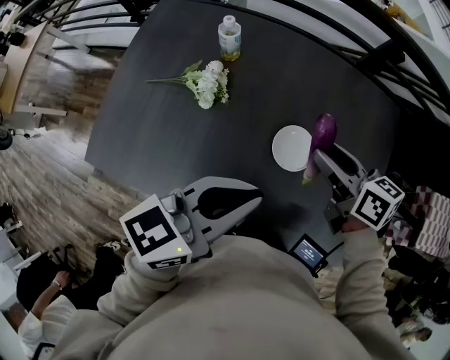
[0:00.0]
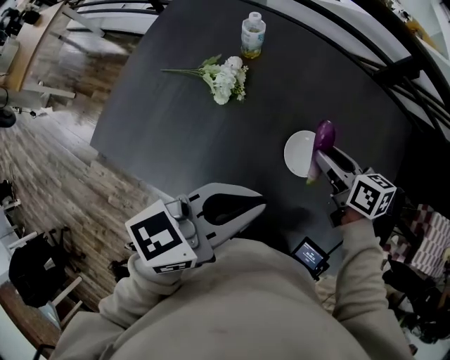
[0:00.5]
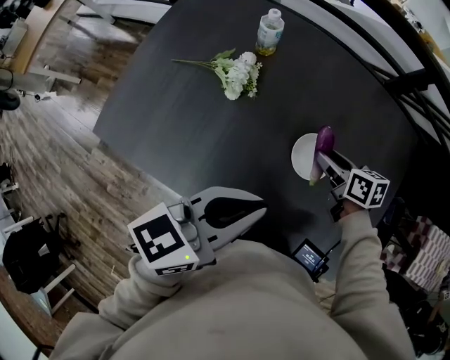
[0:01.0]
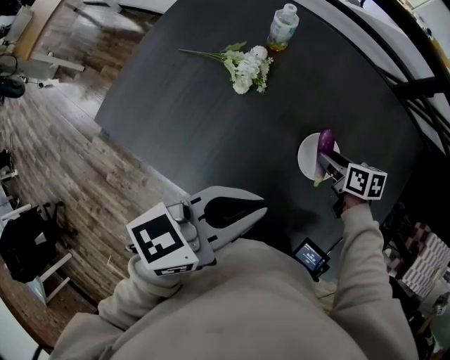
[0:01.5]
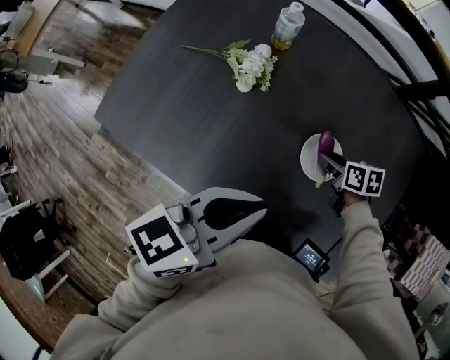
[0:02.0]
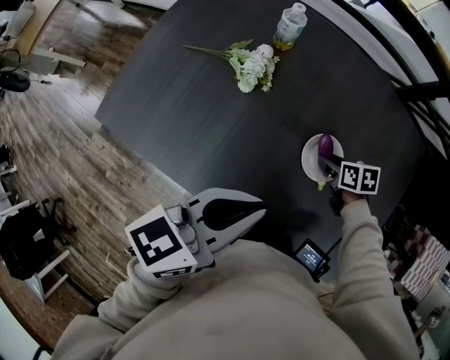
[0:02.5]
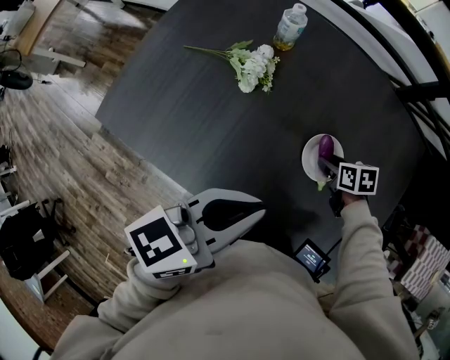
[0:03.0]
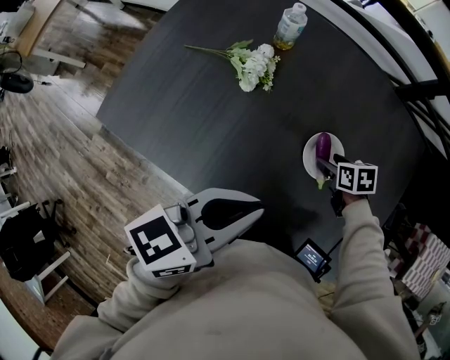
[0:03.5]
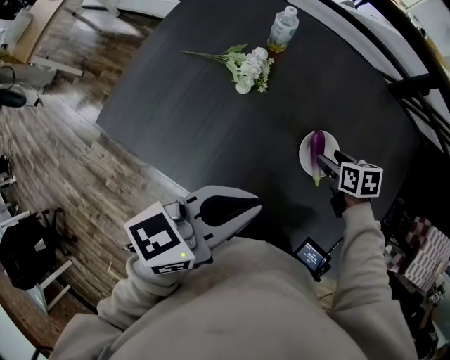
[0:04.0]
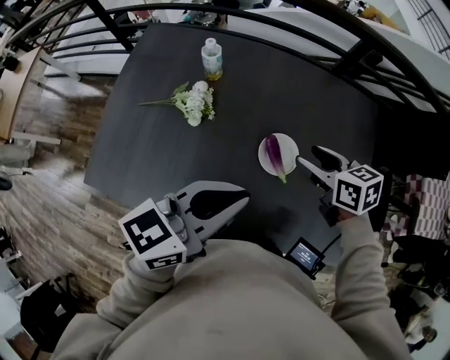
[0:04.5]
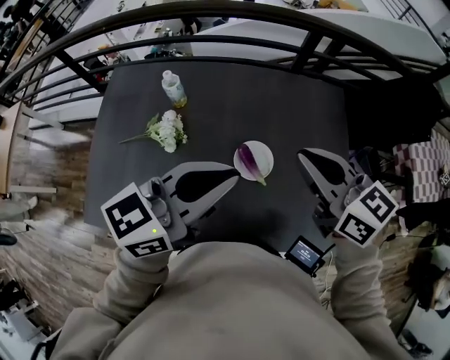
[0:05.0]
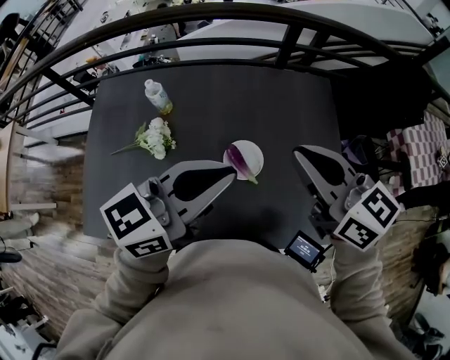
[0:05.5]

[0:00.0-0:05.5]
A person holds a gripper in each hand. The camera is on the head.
0:00.0 to 0:02.0: The right gripper travels downward by roughly 25 cm, and changes its angle by some 30 degrees. Meanwhile the left gripper moves downward, about 5 cm.
0:02.0 to 0:03.5: The grippers stay close to where they were, moving slightly.
0:03.5 to 0:05.5: The left gripper heads upward, covering approximately 15 cm, and swivels roughly 30 degrees. Meanwhile the right gripper shifts some 40 cm upward, points its fingers some 50 degrees further upward, and closes its fingers.

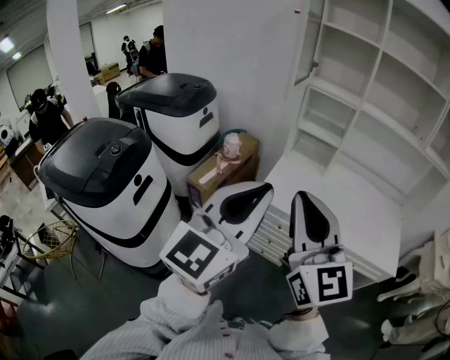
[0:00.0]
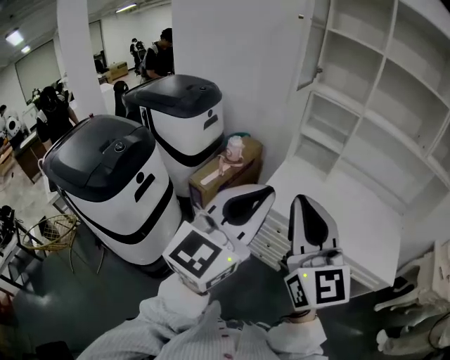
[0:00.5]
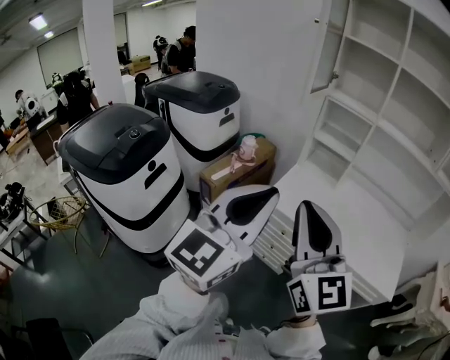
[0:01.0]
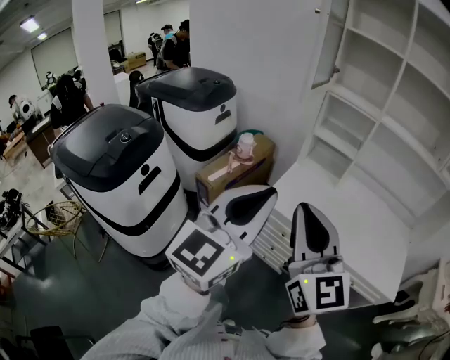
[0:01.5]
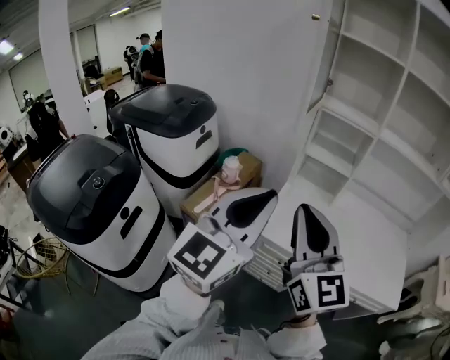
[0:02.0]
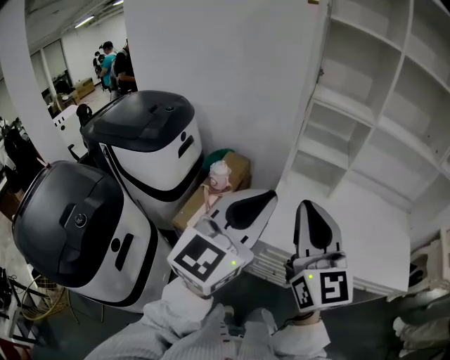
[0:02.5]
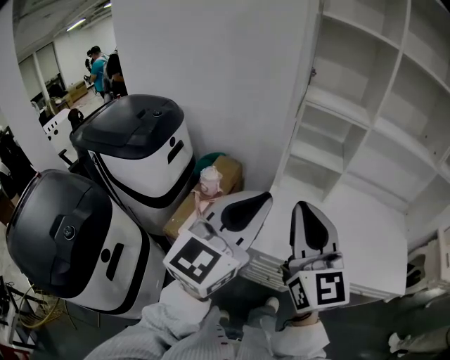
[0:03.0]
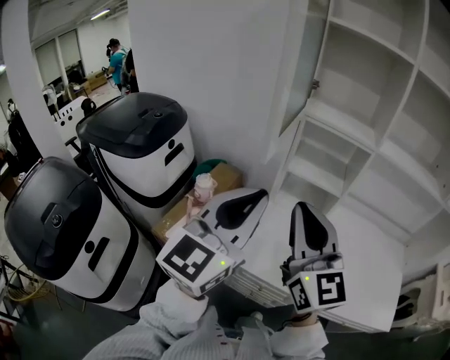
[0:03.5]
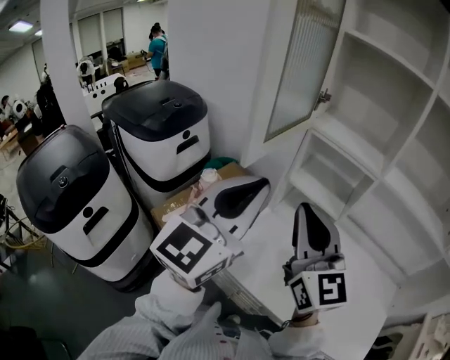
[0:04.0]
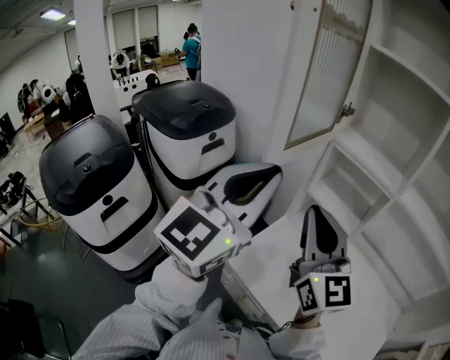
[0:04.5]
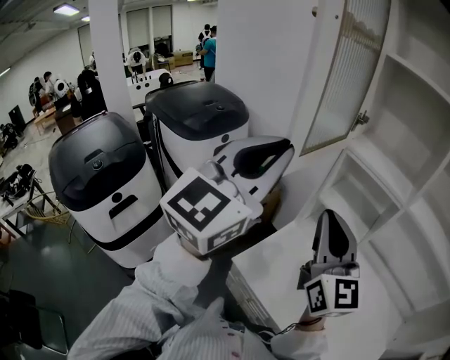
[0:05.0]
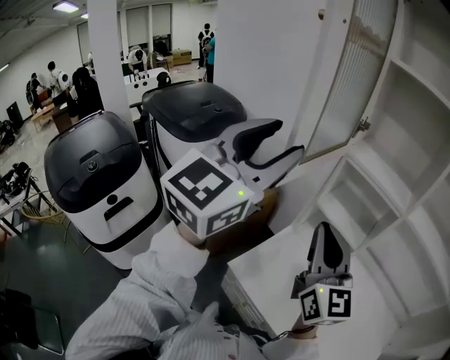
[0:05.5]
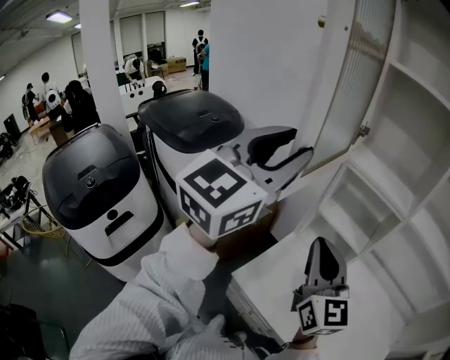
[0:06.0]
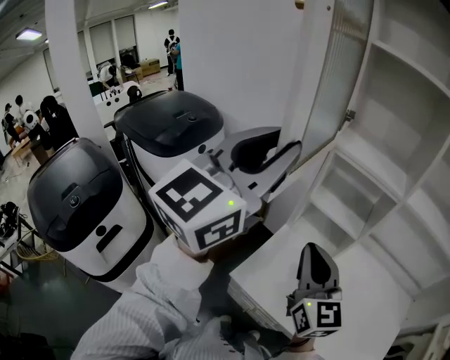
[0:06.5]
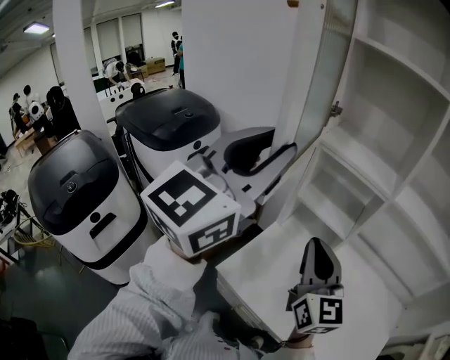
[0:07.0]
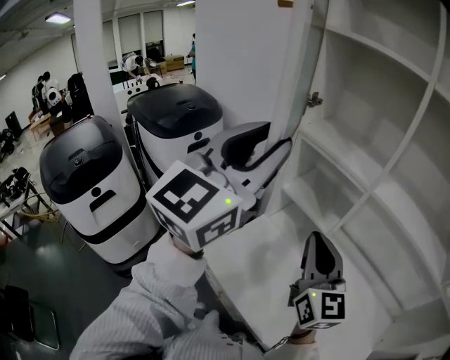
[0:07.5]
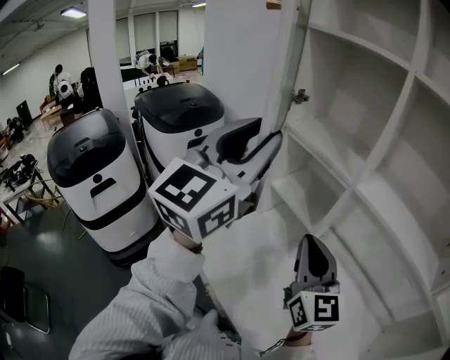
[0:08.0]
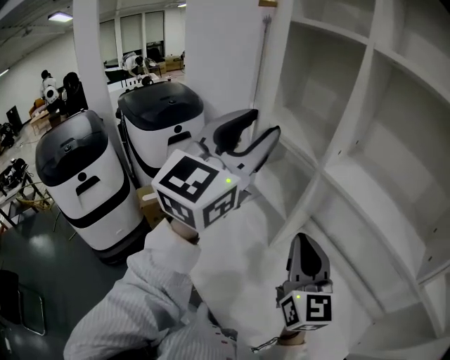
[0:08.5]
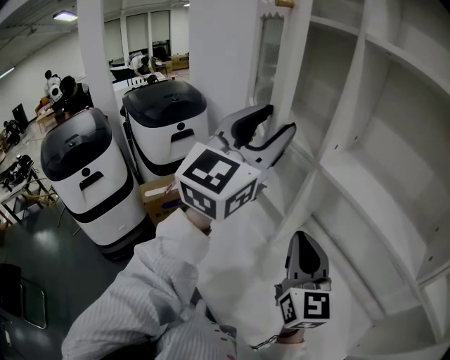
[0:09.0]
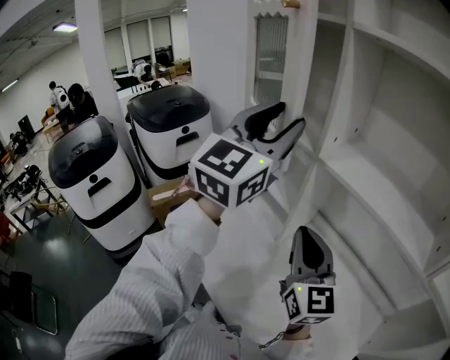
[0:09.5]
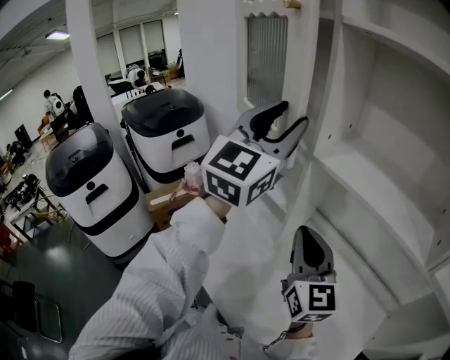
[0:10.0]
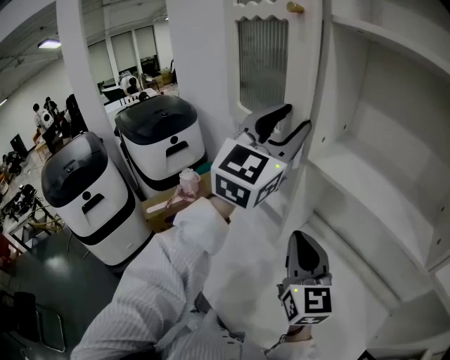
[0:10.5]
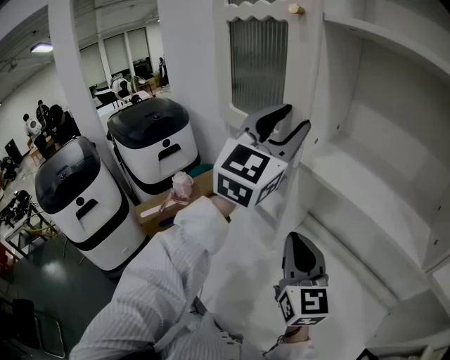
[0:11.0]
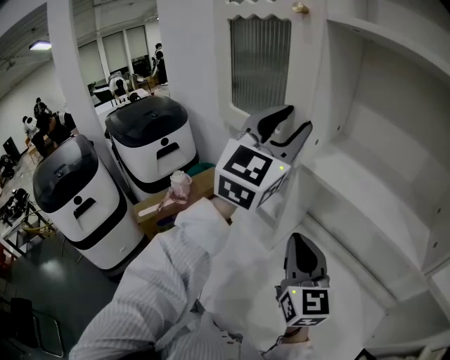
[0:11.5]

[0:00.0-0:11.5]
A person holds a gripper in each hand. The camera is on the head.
0:00.0 to 0:02.0: Both grippers travel together forward, some 15 cm.
0:02.0 to 0:04.0: Both grippers travel together forward, some 20 cm.
0:04.0 to 0:06.0: The right gripper ends up approximately 5 cm from where it was; the left gripper goes approximately 10 cm upward and forward, and opens its fingers.
0:06.0 to 0:07.5: Both grippers move to the right, some 15 cm.
0:07.5 to 0:09.5: Both grippers move to the right, about 15 cm.
0:09.5 to 0:11.5: The left gripper shifts roughly 10 cm to the right and forward.

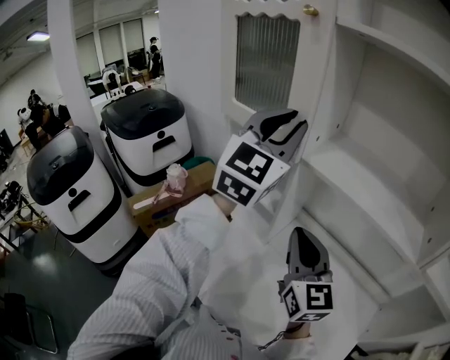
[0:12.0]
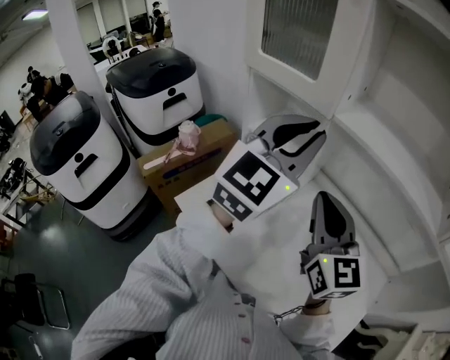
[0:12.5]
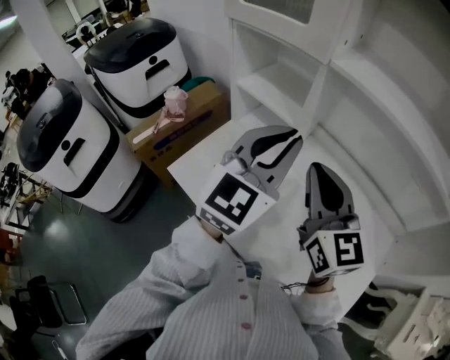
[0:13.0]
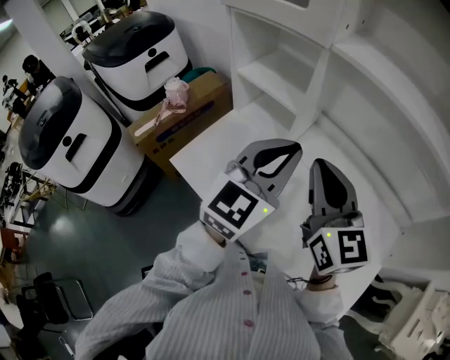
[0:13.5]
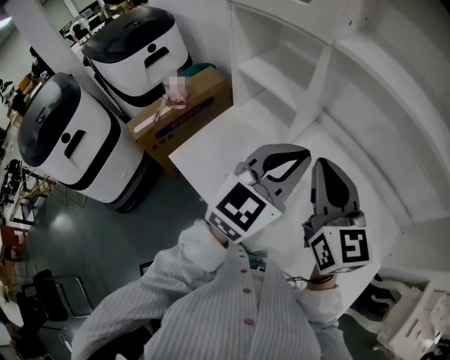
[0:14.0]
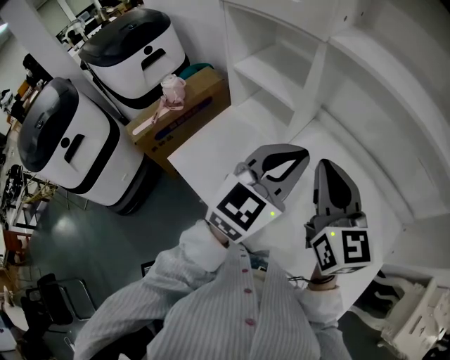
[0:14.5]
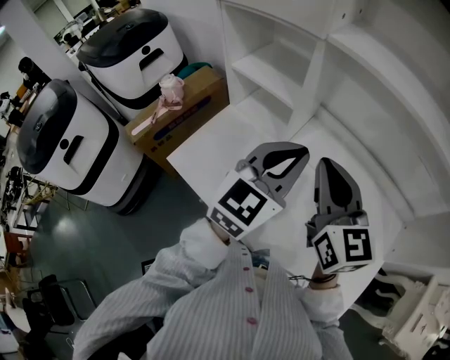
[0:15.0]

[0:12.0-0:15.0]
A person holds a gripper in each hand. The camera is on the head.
0:12.0 to 0:13.5: The right gripper travels backward by approximately 5 cm, while the left gripper heads downward and backward, covering about 30 cm, and changes its angle by roughly 20 degrees.
0:13.5 to 0:15.0: The grippers make only small movements.

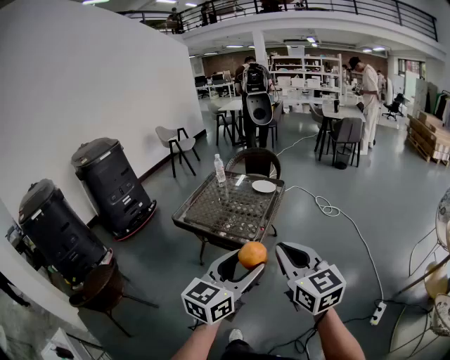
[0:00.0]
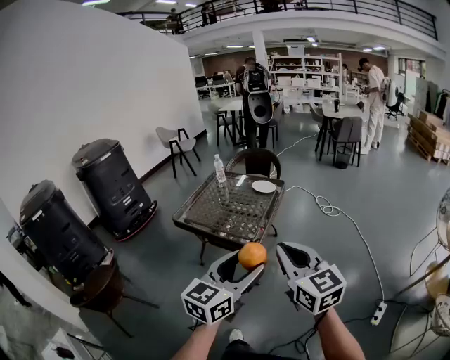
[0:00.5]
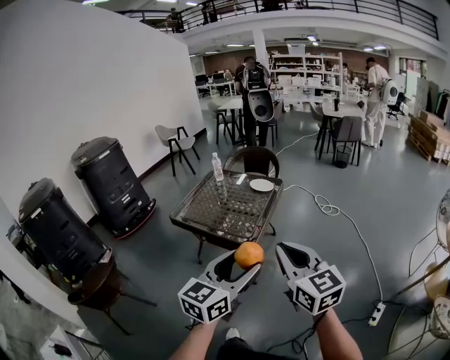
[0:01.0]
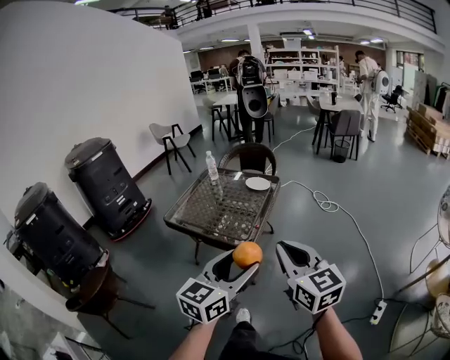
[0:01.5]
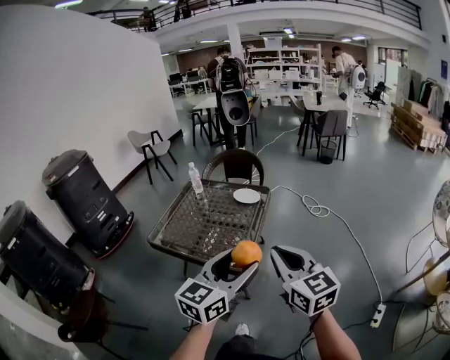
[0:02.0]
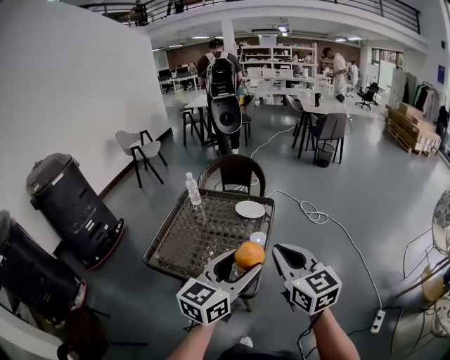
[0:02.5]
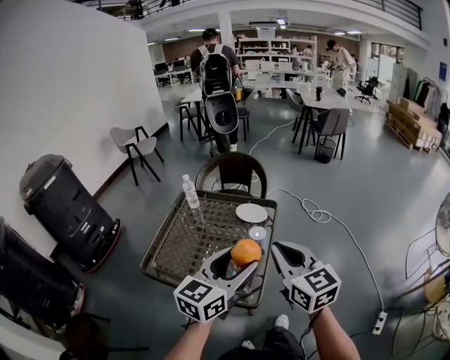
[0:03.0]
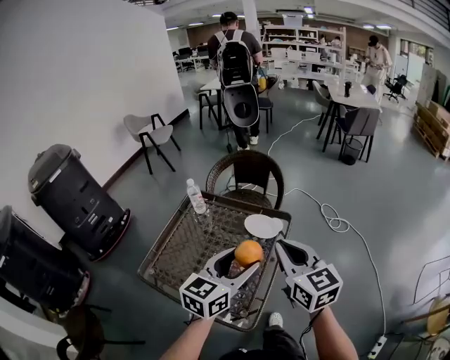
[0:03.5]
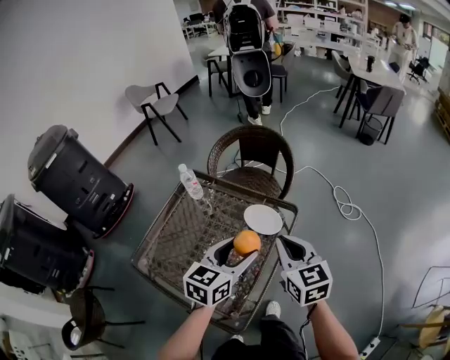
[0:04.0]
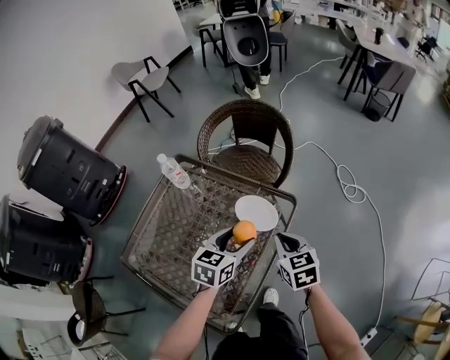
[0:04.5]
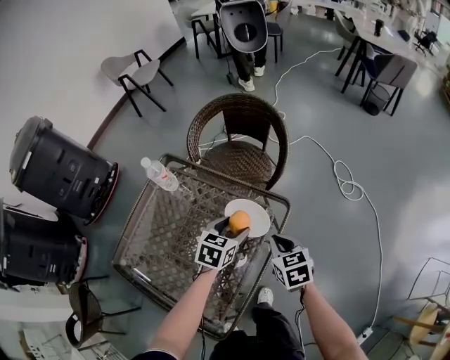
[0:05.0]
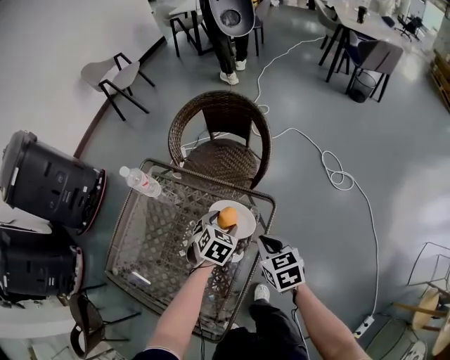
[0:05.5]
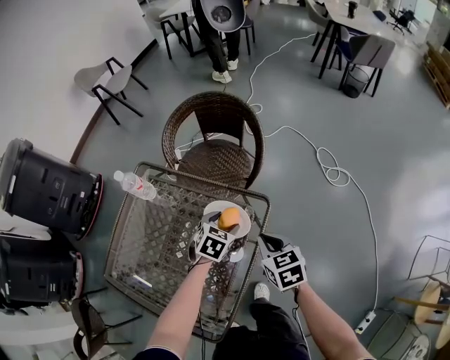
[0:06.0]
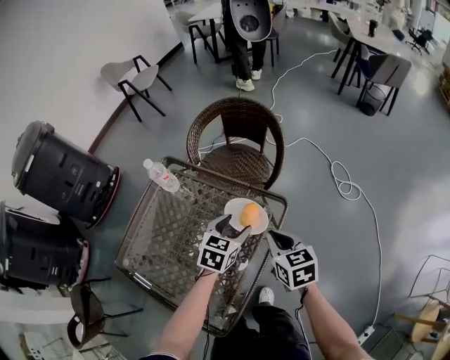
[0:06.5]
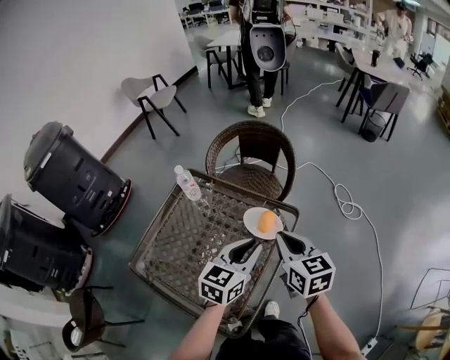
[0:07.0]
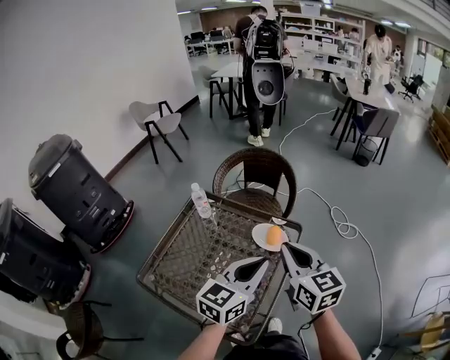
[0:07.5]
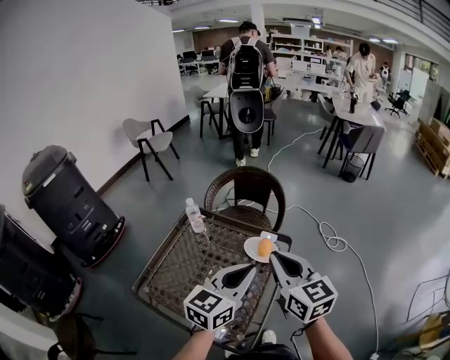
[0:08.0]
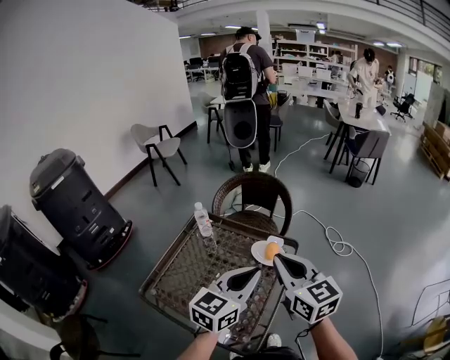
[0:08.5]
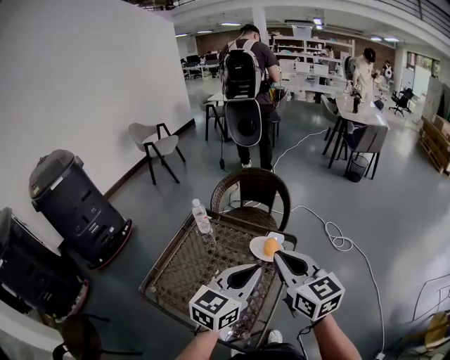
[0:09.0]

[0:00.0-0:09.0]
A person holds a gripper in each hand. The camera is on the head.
0:00.0 to 0:02.0: Both grippers travel together forward, some 15 cm.
0:02.0 to 0:04.5: Both grippers are carried forward, roughly 50 cm. Both grippers move downward, roughly 30 cm. The left gripper points its fingers roughly 30 degrees further downward; the right gripper angles its fingers downward, by approximately 30 degrees.
0:04.5 to 0:07.0: The two grippers go approximately 10 cm upward. The left gripper closes.
0:07.0 to 0:09.0: Both grippers move upward and backward, about 15 cm.
